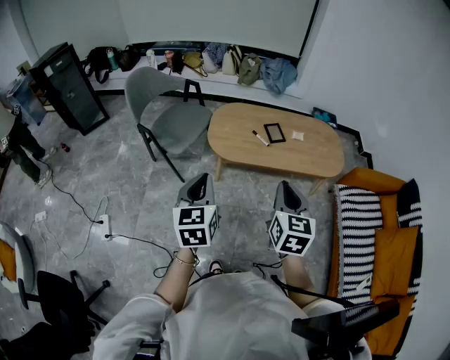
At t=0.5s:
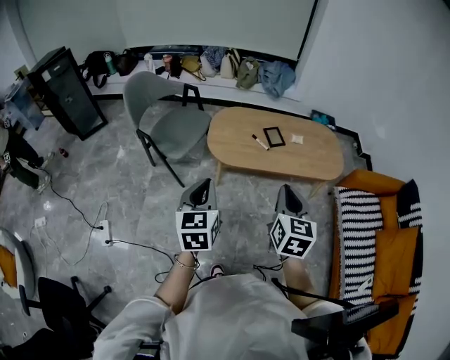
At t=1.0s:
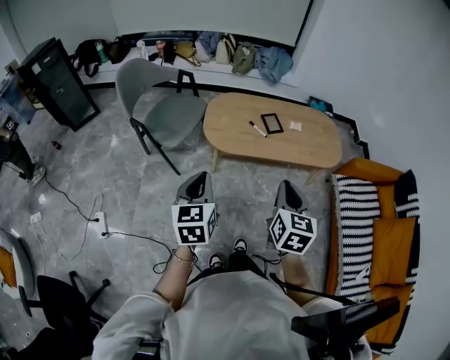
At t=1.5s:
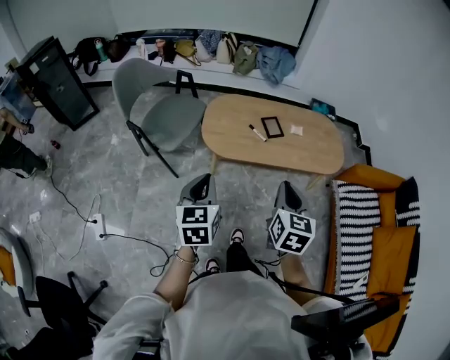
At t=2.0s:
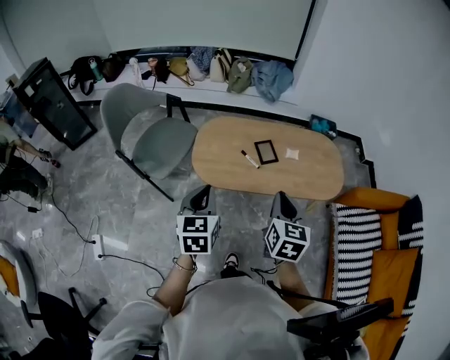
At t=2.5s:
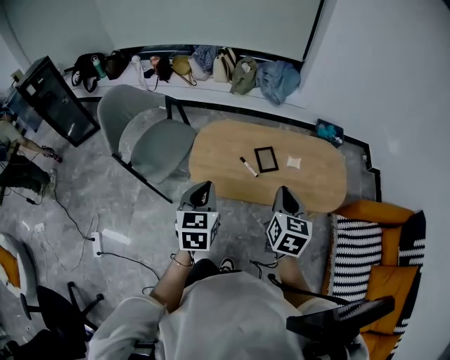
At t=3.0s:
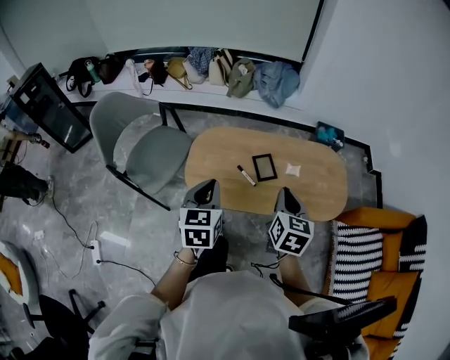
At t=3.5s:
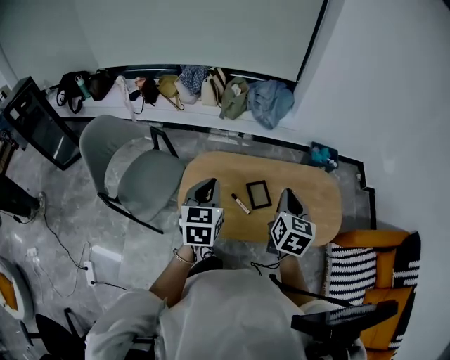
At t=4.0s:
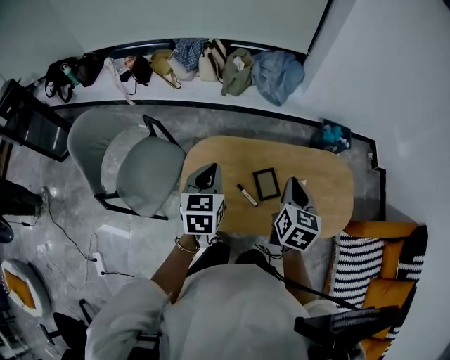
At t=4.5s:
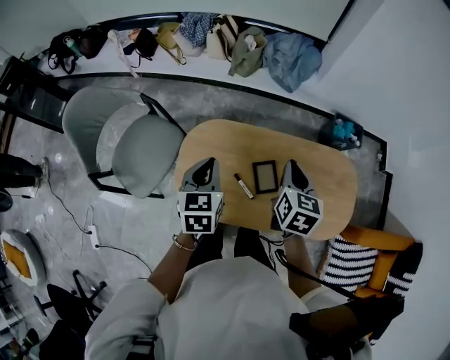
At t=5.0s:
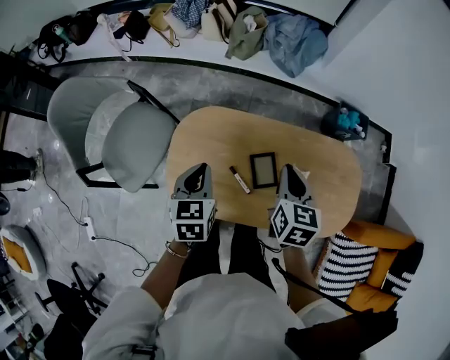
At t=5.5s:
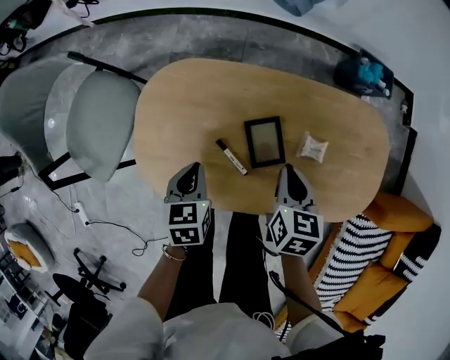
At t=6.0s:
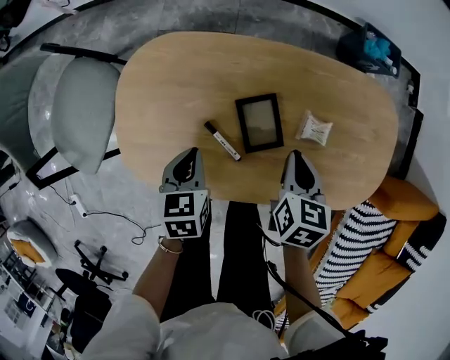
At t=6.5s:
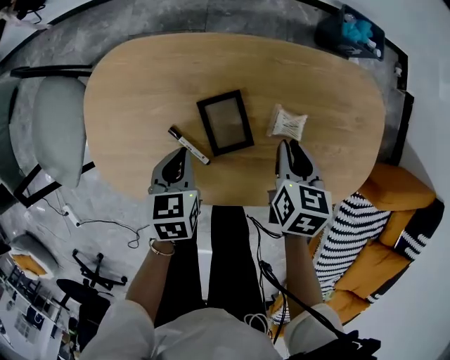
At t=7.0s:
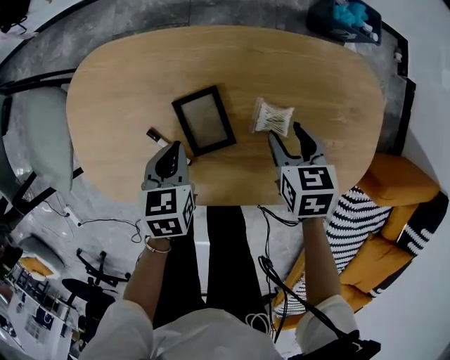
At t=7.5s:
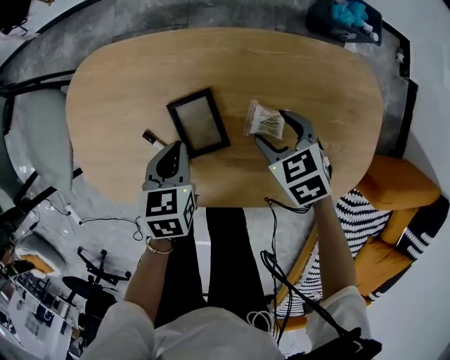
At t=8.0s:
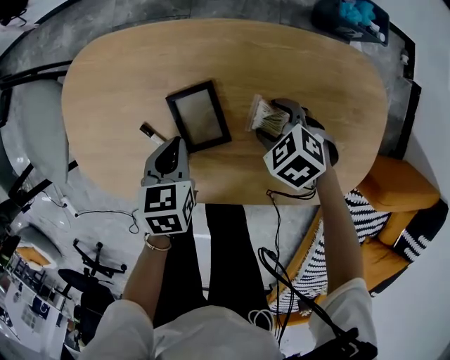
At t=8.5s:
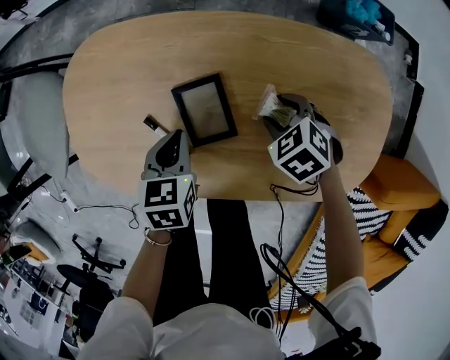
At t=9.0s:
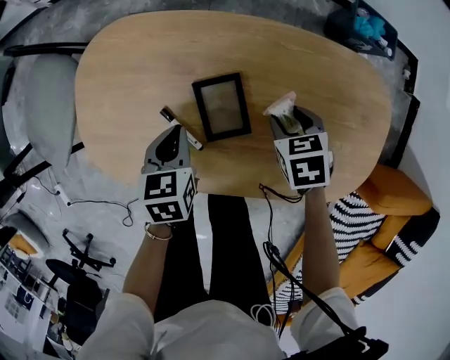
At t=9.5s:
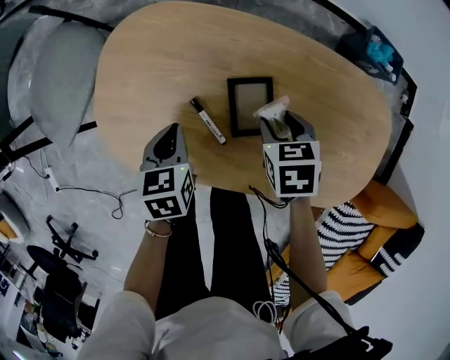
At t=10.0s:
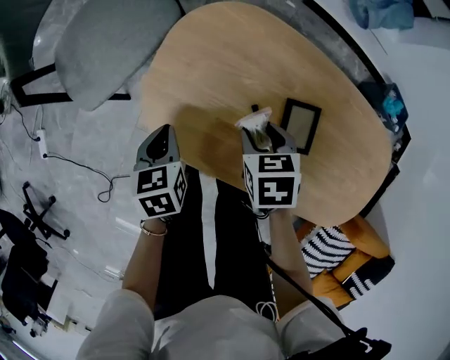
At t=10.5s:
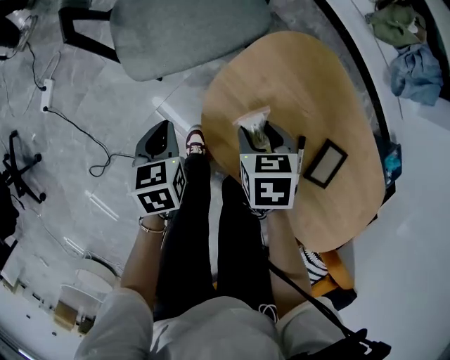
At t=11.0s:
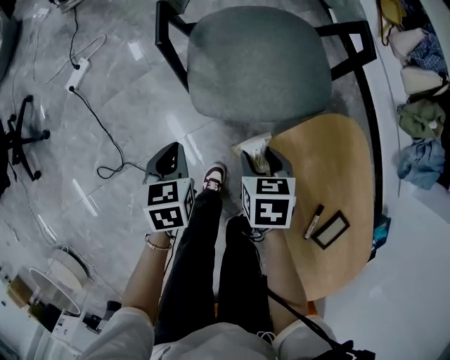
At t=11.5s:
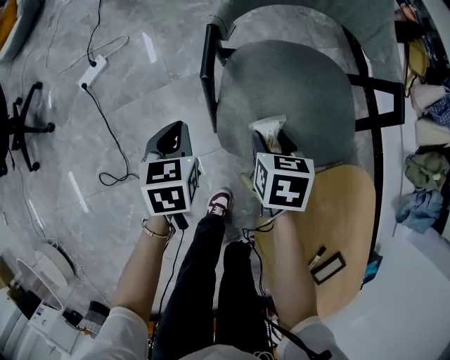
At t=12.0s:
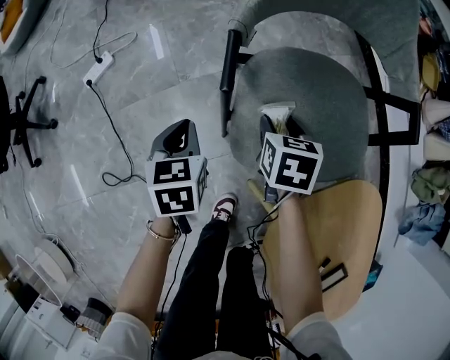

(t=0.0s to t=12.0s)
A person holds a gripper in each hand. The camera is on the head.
t=0.0s - t=2.0s: Both grippers move forward, some 20 cm.
t=2.0s - t=4.0s: The two grippers go about 35 cm forward.
t=4.0s - t=6.0s: Both grippers move downward, approximately 35 cm. The left gripper swivels approximately 30 degrees; the right gripper swivels some 20 degrees.
t=6.0s - t=8.0s: The right gripper travels downward by roughly 15 cm, rolls counterclockwise, seen from behind, by some 60 degrees, and opens its fingers, while the left gripper shifts by about 15 cm.
t=8.0s - t=10.0s: The two grippers go some 30 cm to the left. The left gripper changes its angle by roughly 30 degrees; the right gripper turns by roughly 20 degrees.
t=10.0s - t=12.0s: Both grippers are carried roughly 50 cm. The right gripper turns by roughly 30 degrees. The left gripper changes its angle by approximately 40 degrees.

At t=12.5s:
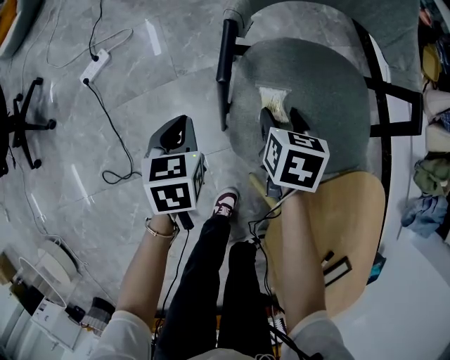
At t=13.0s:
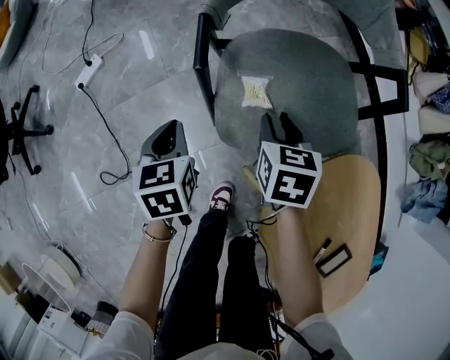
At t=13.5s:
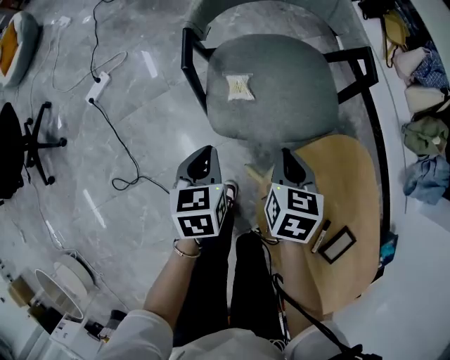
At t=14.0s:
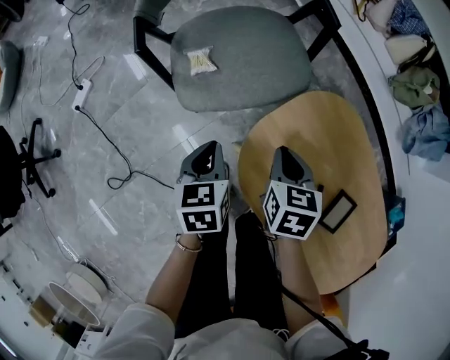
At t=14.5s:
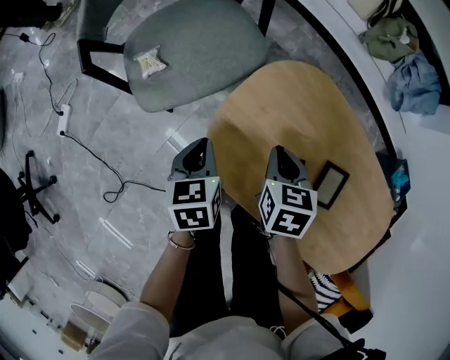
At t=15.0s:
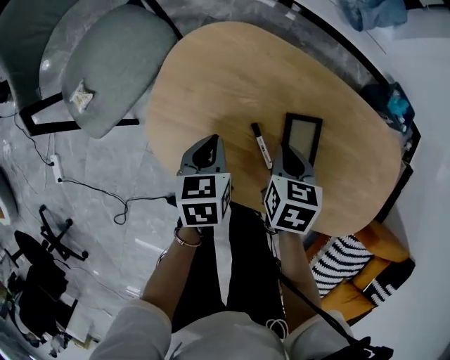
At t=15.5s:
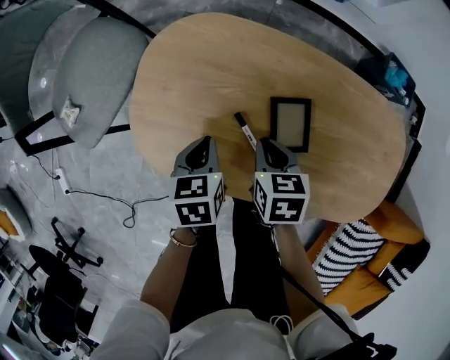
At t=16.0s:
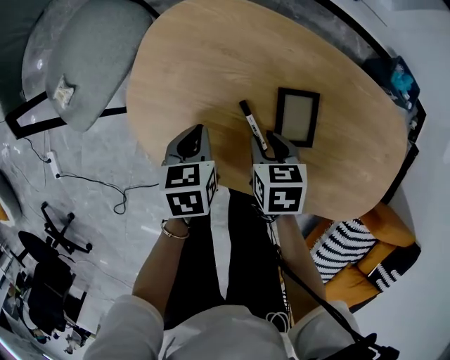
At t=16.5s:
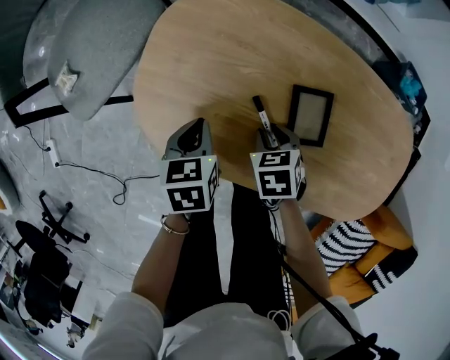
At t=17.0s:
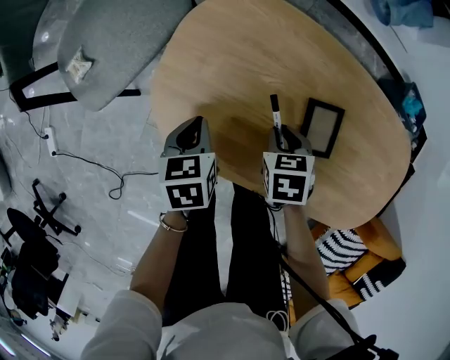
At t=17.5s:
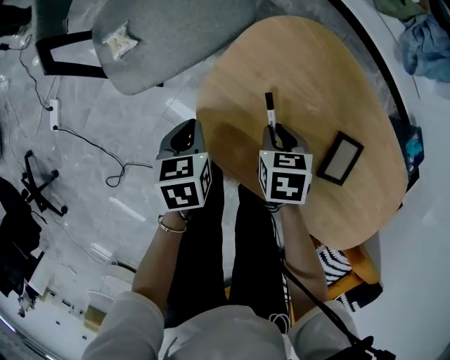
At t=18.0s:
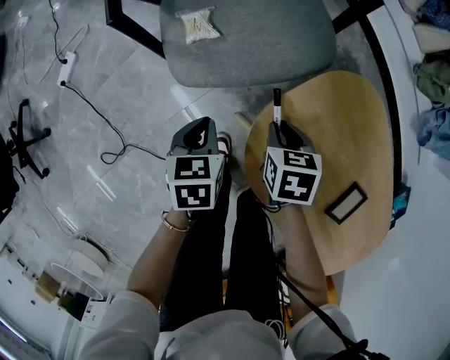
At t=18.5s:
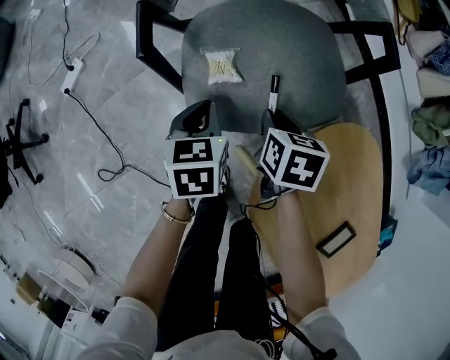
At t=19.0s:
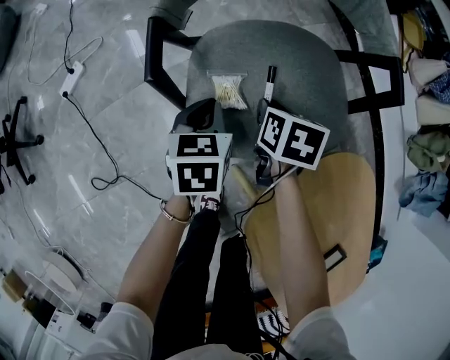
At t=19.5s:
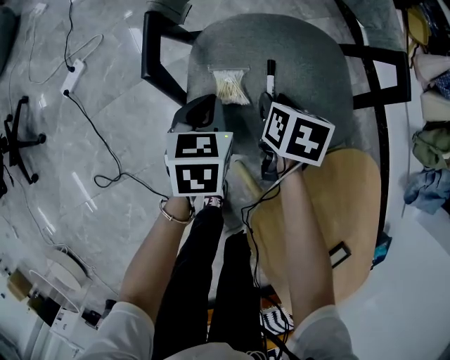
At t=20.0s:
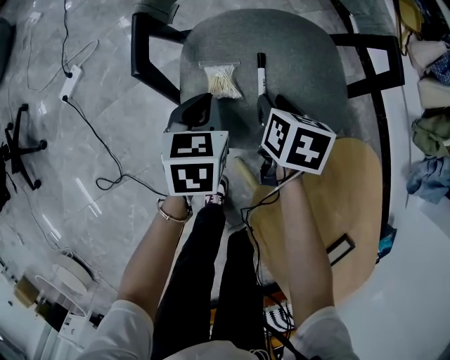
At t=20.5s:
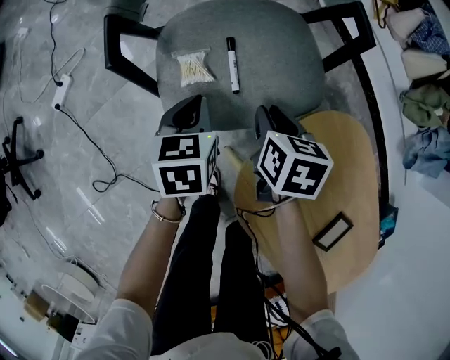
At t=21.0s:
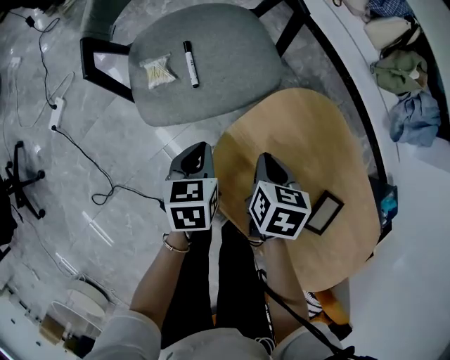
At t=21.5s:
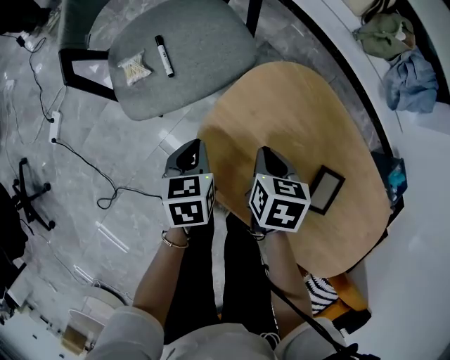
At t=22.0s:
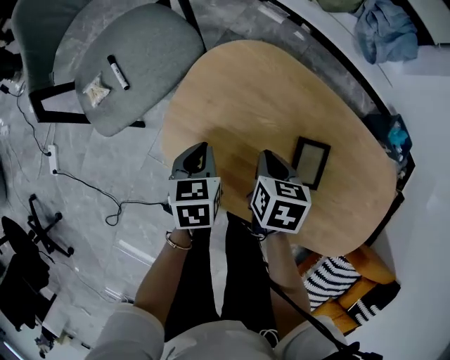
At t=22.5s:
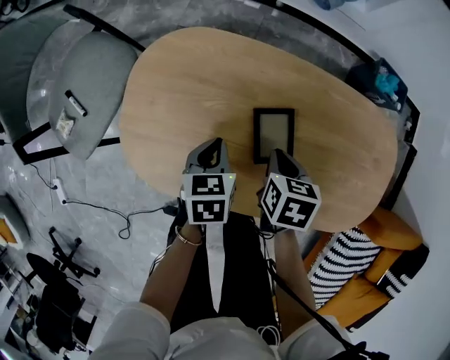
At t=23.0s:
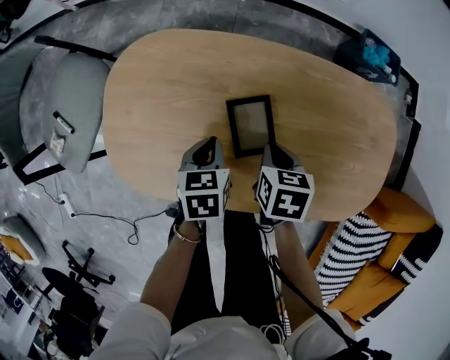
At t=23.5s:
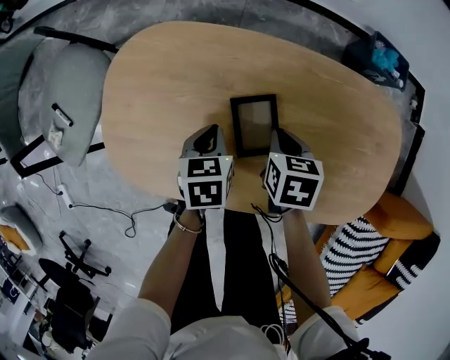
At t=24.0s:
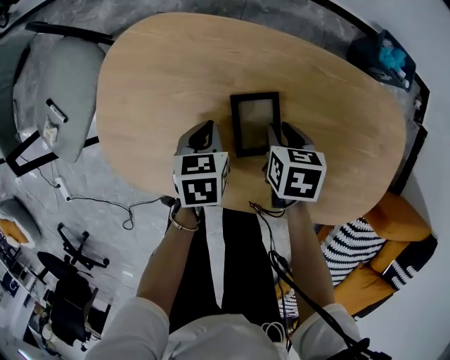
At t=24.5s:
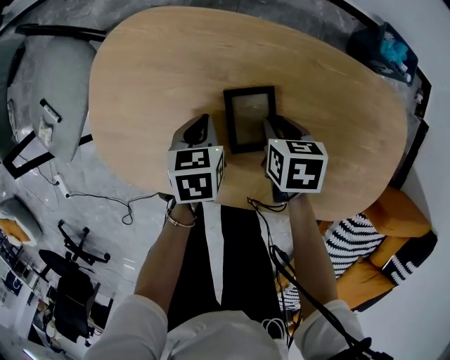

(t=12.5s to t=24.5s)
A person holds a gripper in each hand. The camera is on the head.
t=12.5s - t=14.5s: The right gripper changes place by approximately 40 cm, rotates some 30 degrees, and closes up, while the left gripper ends up some 35 cm from where it was, and swivels about 30 degrees.
t=14.5s - t=16.5s: The left gripper is displaced to the right by about 20 cm, and rotates some 20 degrees; the right gripper is displaced to the right, downward and backward by about 25 cm, and opens.
t=16.5s - t=18.5s: The two grippers travel together, about 40 cm. The left gripper swivels about 40 degrees.
t=18.5s - t=20.5s: The right gripper reaches about 10 cm forward, then returns.
t=20.5s - t=22.5s: Both grippers are carried roughly 50 cm. The left gripper turns by approximately 40 degrees. Meanwhile the right gripper swivels some 40 degrees.
t=22.5s - t=24.5s: The left gripper heads downward, covering about 5 cm, while the right gripper shifts roughly 10 cm downward and to the right.

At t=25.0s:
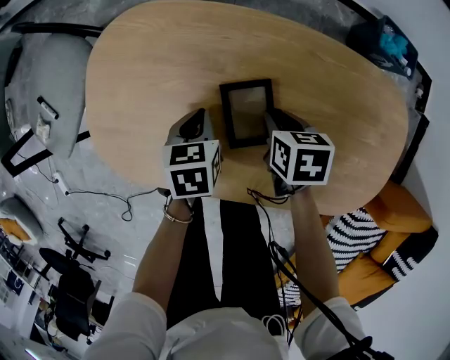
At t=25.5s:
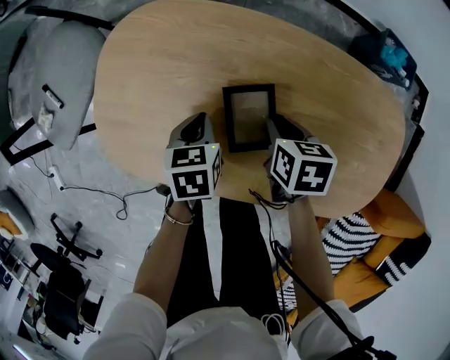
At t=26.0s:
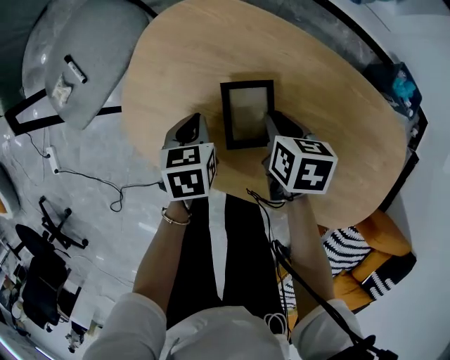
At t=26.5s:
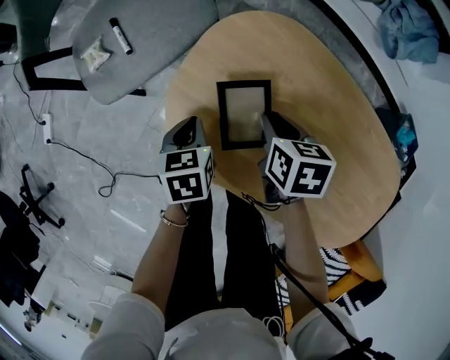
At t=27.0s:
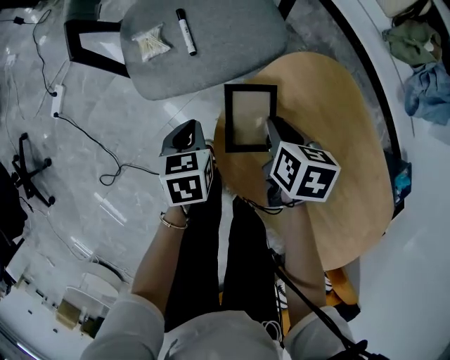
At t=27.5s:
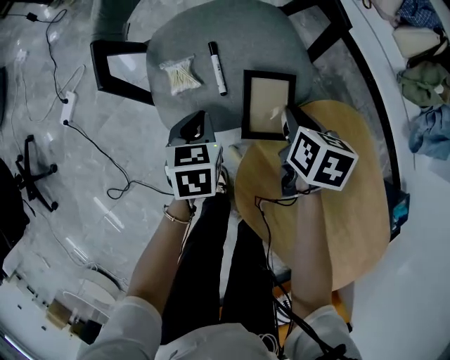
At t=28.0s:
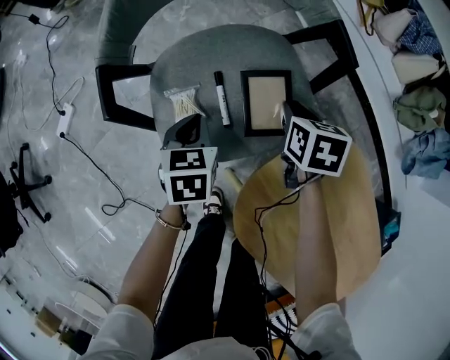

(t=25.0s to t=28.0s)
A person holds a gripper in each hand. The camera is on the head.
t=25.0s - t=26.5s: The left gripper moves to the left, approximately 25 cm, and rotates some 30 degrees; the right gripper shifts roughly 25 cm to the left and forward.
t=26.5s - t=28.0s: The two grippers go roughly 35 cm forward and to the left.
